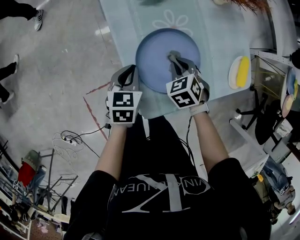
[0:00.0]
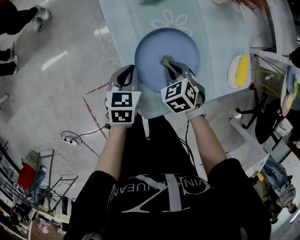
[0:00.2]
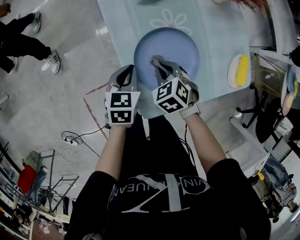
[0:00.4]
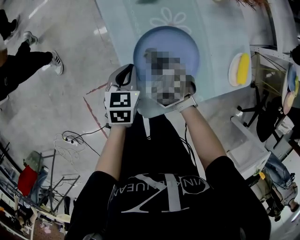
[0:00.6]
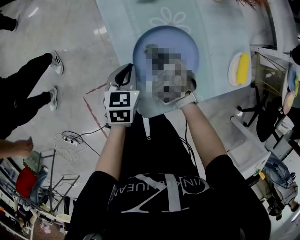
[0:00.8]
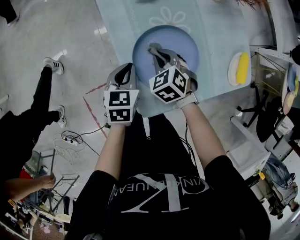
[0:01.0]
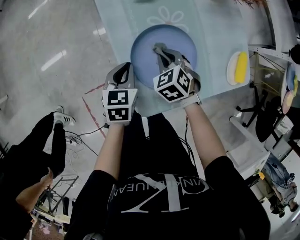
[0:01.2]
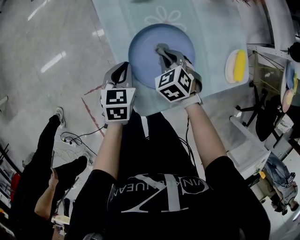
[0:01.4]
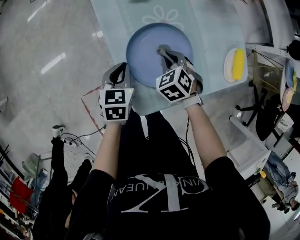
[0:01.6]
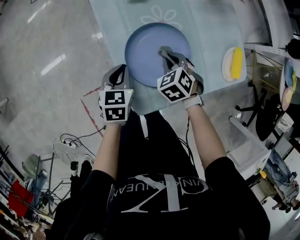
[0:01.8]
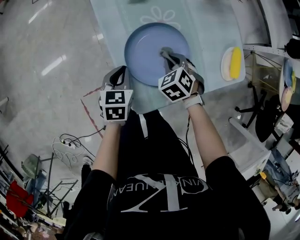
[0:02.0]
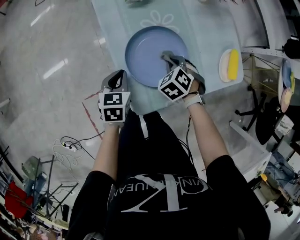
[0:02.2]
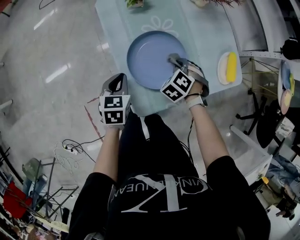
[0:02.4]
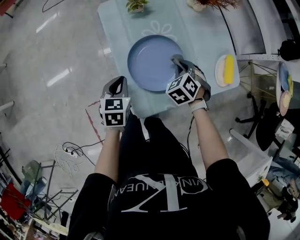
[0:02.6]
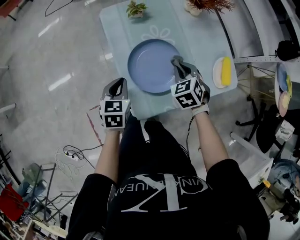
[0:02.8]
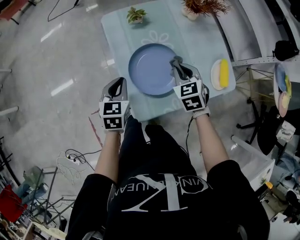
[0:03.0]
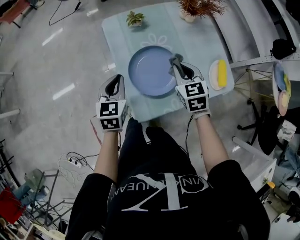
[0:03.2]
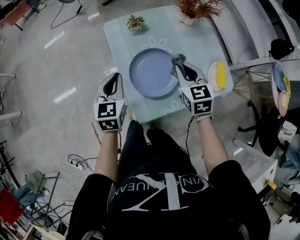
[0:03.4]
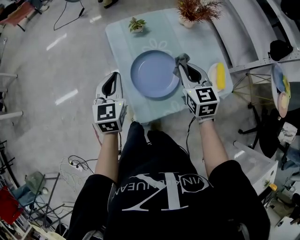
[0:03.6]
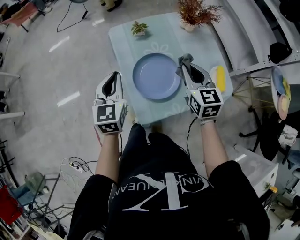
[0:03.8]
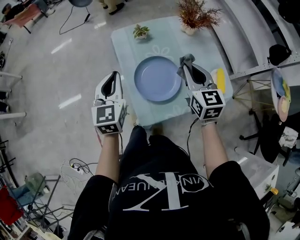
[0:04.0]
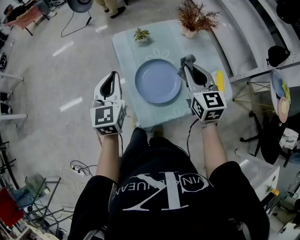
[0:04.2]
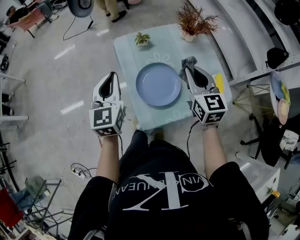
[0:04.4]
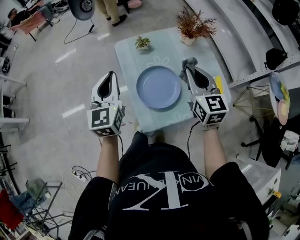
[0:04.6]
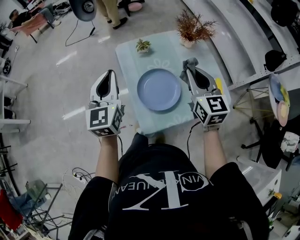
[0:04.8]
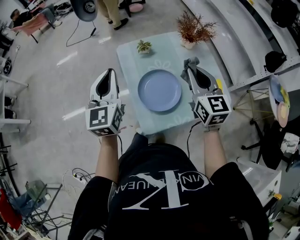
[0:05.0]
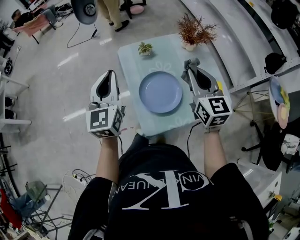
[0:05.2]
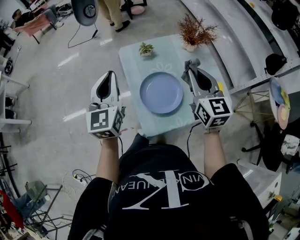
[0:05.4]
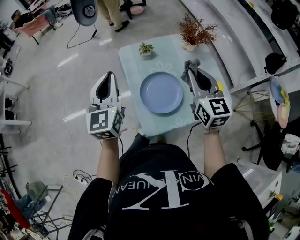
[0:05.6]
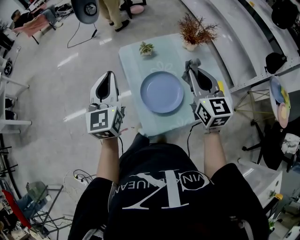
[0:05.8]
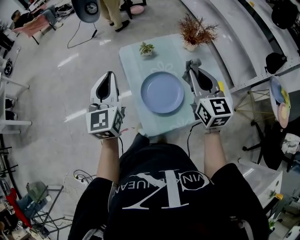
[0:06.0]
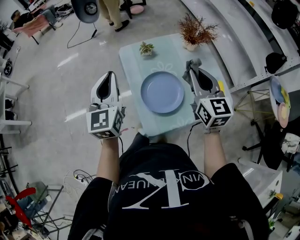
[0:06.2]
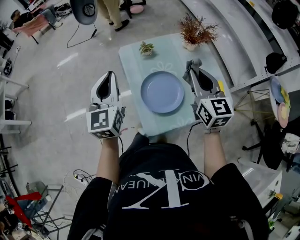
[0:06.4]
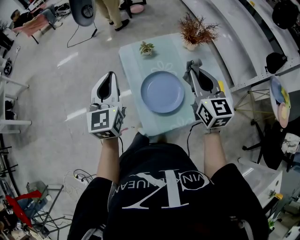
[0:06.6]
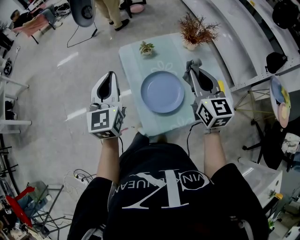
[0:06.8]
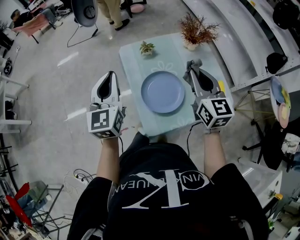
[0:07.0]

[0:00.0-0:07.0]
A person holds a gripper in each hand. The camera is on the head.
0:00.0 to 0:01.4: The right gripper reaches roughly 10 cm to the left, then returns.
0:01.4 to 0:02.8: The left gripper travels upward and backward by roughly 10 cm. Meanwhile the right gripper moves upward and to the right, approximately 10 cm.
0:02.8 to 0:04.2: Both grippers move upward, approximately 20 cm. The right gripper points its fingers roughly 30 degrees further upward. Meanwhile the left gripper turns by roughly 30 degrees.
0:04.2 to 0:05.6: The grippers both shift upward by some 10 cm.
0:05.6 to 0:07.0: Neither gripper changes place.

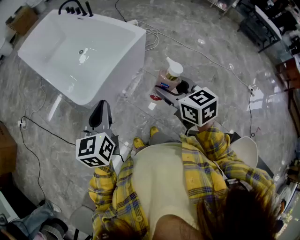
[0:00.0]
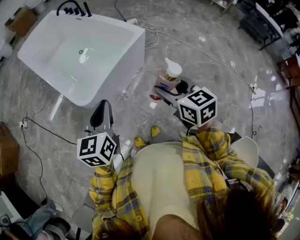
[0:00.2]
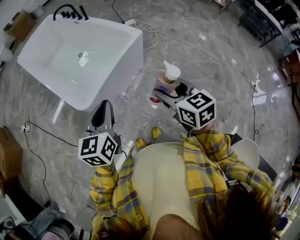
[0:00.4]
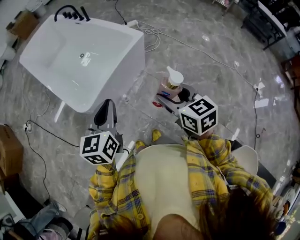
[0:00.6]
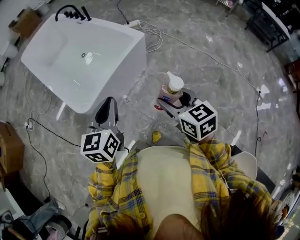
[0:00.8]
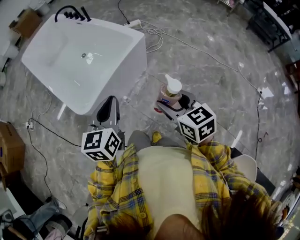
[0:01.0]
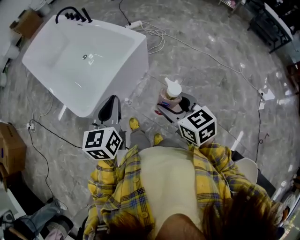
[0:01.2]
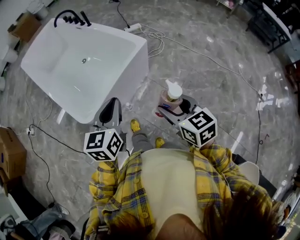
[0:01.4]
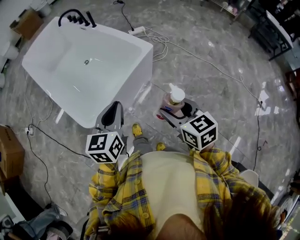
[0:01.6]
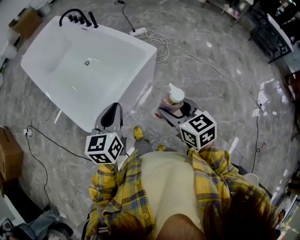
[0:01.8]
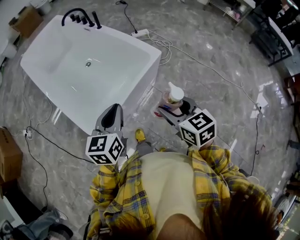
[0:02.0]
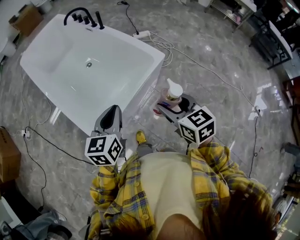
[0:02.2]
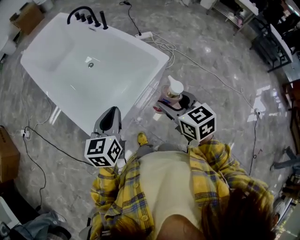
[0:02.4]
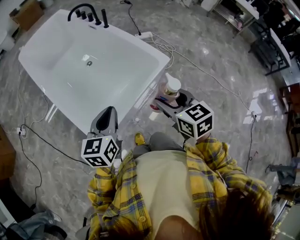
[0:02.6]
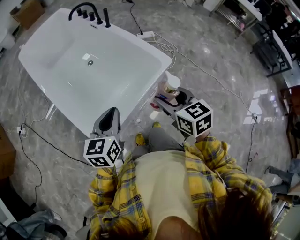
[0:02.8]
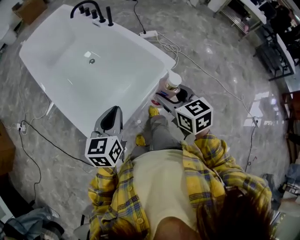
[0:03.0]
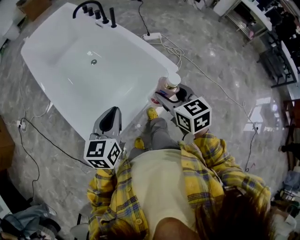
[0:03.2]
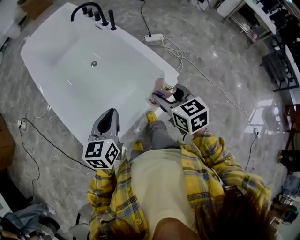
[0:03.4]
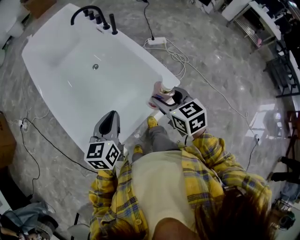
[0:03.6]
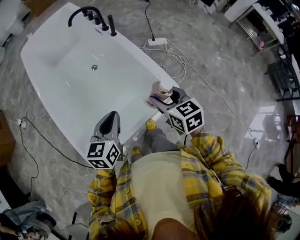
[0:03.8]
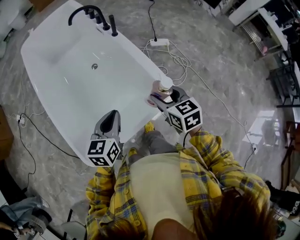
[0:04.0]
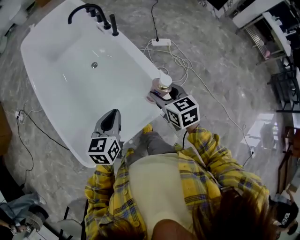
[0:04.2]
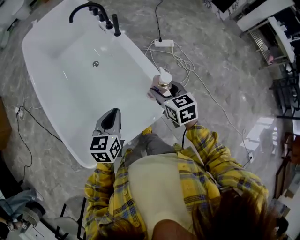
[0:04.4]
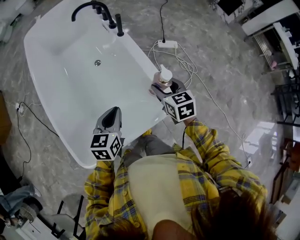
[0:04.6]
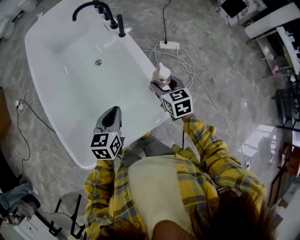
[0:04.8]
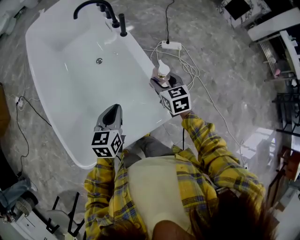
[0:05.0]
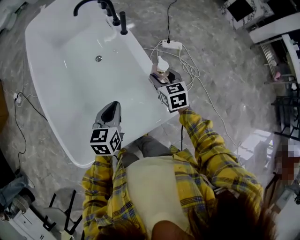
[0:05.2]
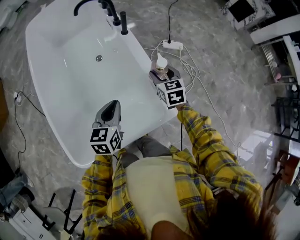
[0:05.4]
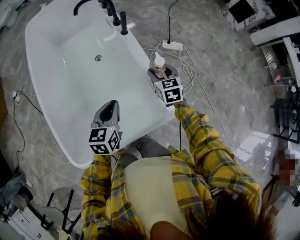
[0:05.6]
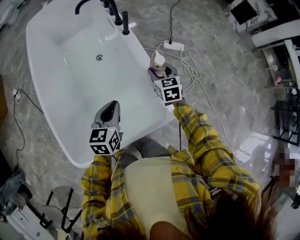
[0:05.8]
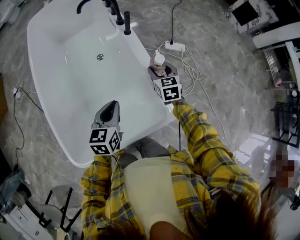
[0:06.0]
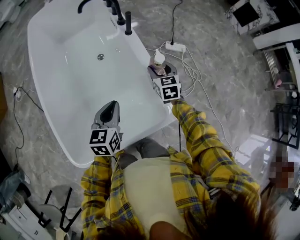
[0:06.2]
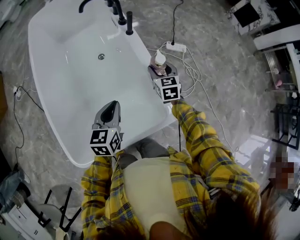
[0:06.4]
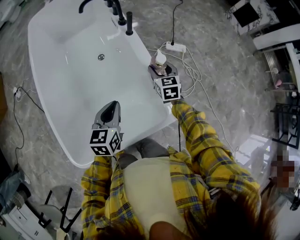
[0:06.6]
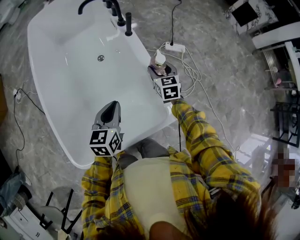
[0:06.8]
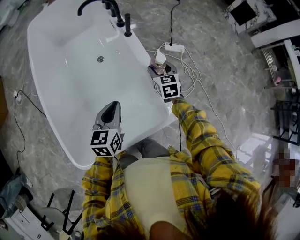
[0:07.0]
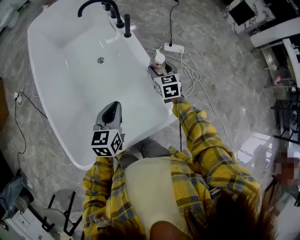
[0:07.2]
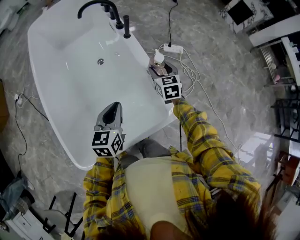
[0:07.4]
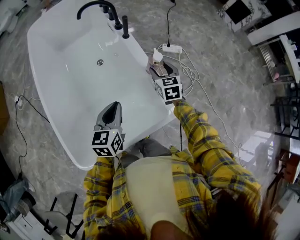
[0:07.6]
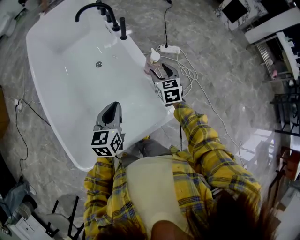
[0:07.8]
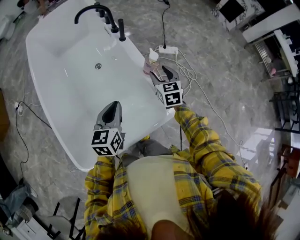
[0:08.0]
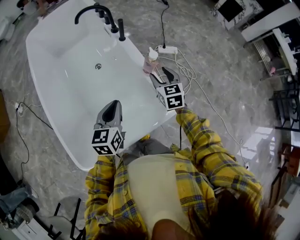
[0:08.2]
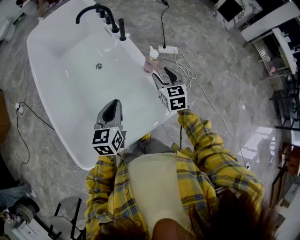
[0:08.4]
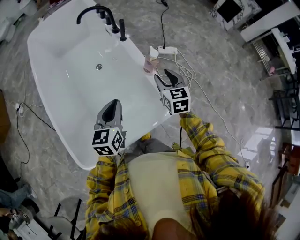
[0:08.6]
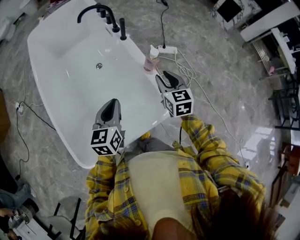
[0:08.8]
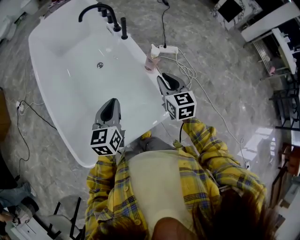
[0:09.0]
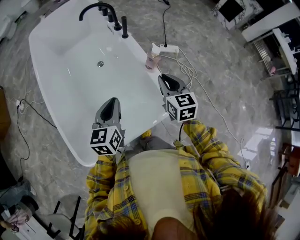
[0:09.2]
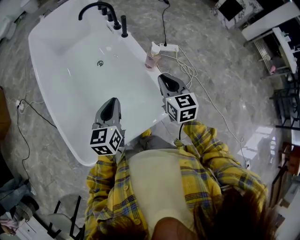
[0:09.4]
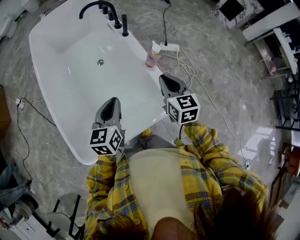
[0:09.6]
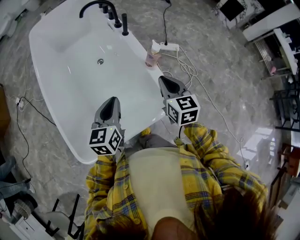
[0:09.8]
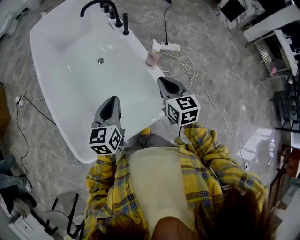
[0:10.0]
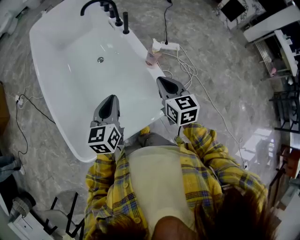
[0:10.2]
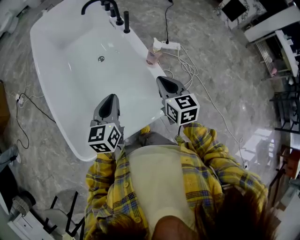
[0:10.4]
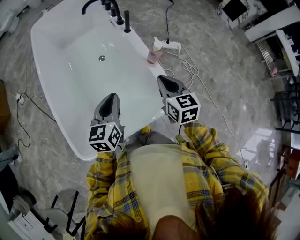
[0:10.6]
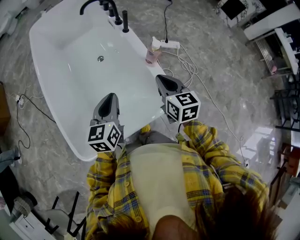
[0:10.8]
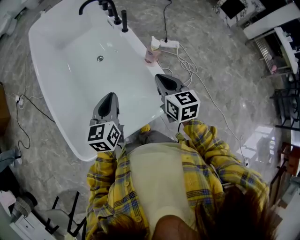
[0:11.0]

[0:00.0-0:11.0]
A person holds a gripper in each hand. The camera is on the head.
0:00.0 to 0:01.6: The left gripper heads forward and to the right, covering about 15 cm, while the right gripper shifts about 10 cm forward.
0:01.6 to 0:03.2: The right gripper travels forward by approximately 25 cm, while the left gripper goes some 20 cm forward and to the left.
0:03.2 to 0:04.8: The left gripper moves forward, to the right and downward, some 25 cm. Meanwhile the right gripper travels forward and downward by some 30 cm.
0:04.8 to 0:06.2: The right gripper travels forward and downward by about 10 cm.
0:06.2 to 0:07.8: The grippers stay close to where they were, moving slightly.
0:07.8 to 0:09.4: The right gripper moves backward and upward, about 15 cm, and closes its fingers.
0:09.4 to 0:11.0: The grippers make only small movements.

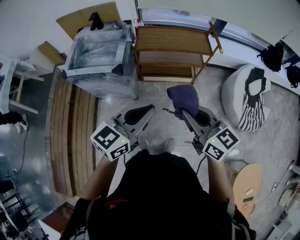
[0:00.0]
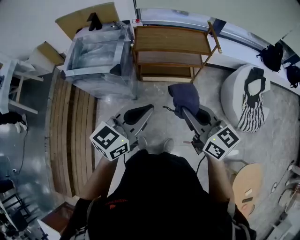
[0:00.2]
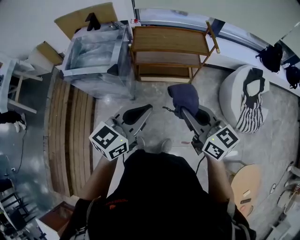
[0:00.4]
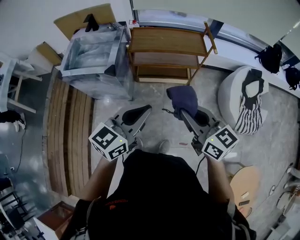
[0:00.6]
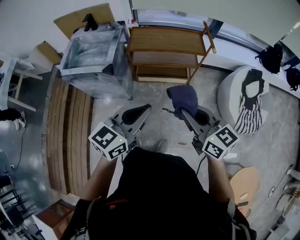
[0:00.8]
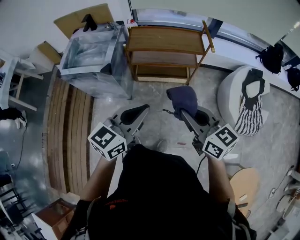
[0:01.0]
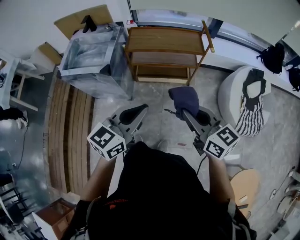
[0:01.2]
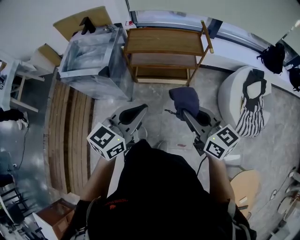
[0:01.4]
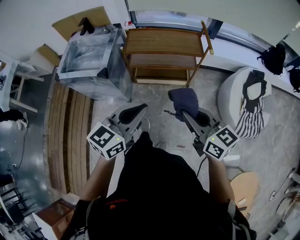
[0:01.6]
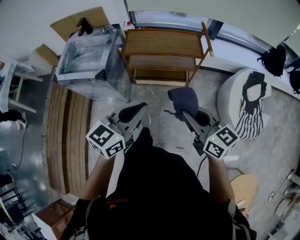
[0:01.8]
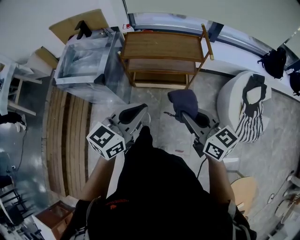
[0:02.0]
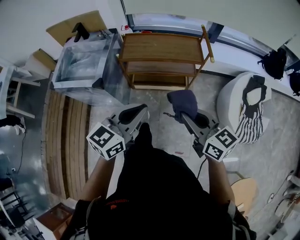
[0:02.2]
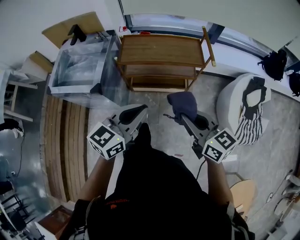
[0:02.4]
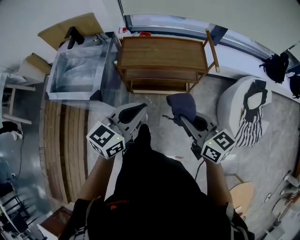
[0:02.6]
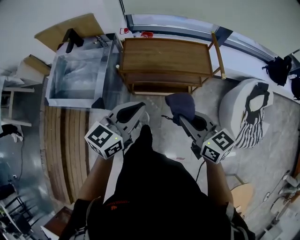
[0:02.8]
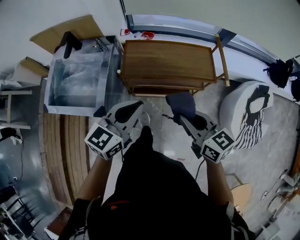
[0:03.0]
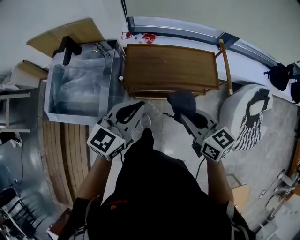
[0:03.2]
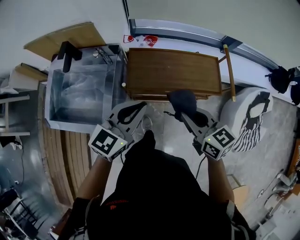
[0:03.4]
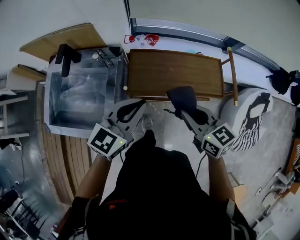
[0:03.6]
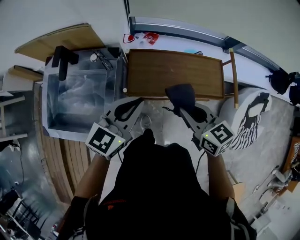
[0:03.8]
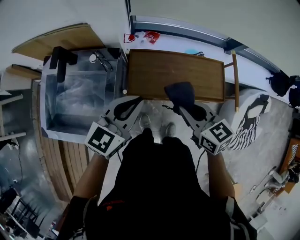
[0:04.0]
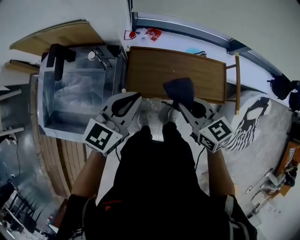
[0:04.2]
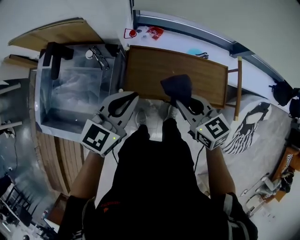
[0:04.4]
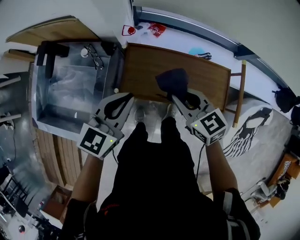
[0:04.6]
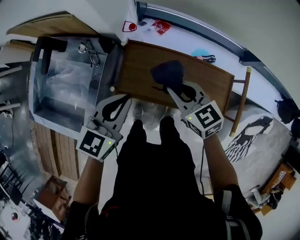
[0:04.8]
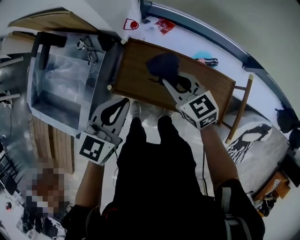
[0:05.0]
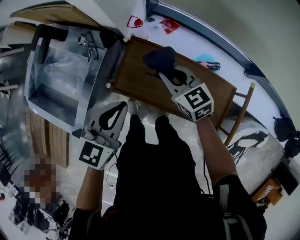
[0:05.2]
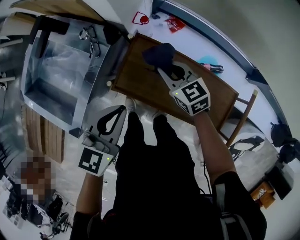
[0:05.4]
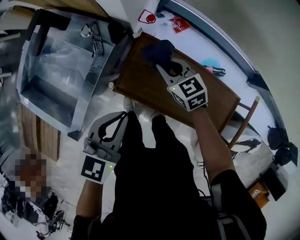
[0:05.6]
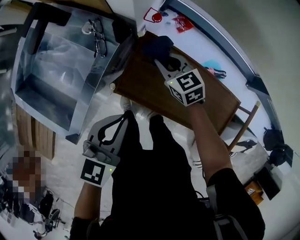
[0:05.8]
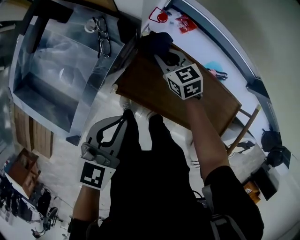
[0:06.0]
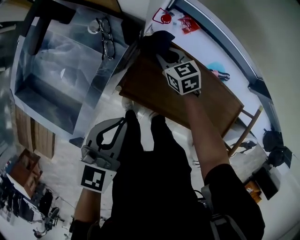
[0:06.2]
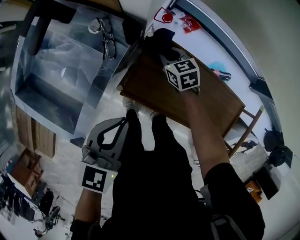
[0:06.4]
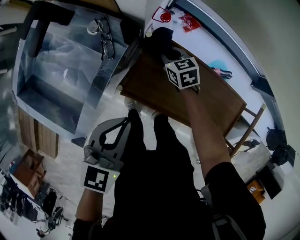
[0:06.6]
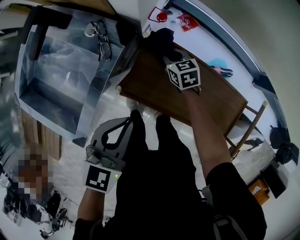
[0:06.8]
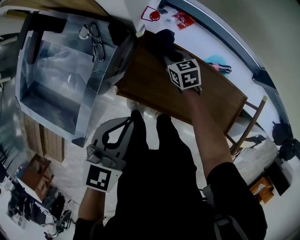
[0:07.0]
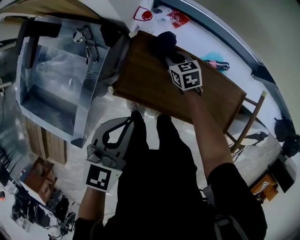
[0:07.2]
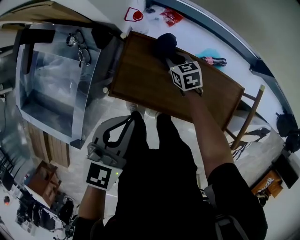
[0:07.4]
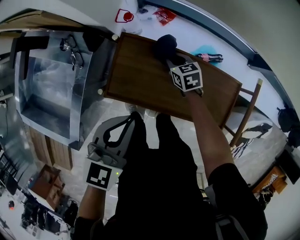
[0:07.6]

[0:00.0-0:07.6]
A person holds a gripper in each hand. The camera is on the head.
0:00.0 to 0:01.6: Both grippers move to the right, some 10 cm.
0:01.6 to 0:03.0: The grippers both shift forward by roughly 30 cm.
0:03.0 to 0:04.6: Both grippers move forward, some 30 cm. The right gripper changes its angle by approximately 20 degrees.
0:04.6 to 0:06.0: The left gripper moves downward and to the left, roughly 10 cm, and turns by some 20 degrees. The right gripper goes about 30 cm downward, forward and to the left.
0:06.0 to 0:07.6: The left gripper is displaced to the right by approximately 10 cm. Meanwhile the right gripper heads to the right, covering roughly 15 cm, and rotates about 20 degrees.
